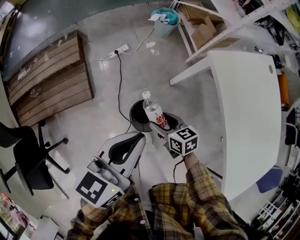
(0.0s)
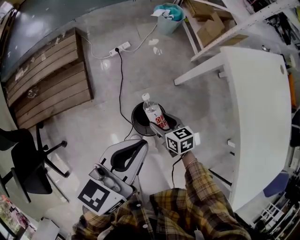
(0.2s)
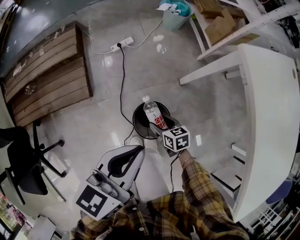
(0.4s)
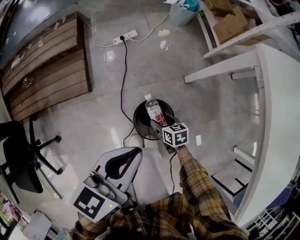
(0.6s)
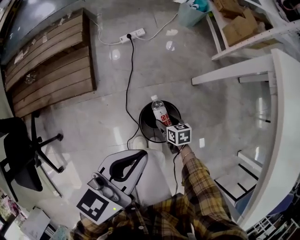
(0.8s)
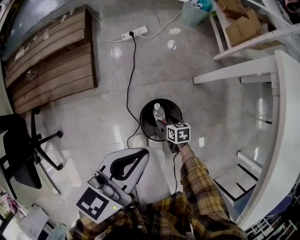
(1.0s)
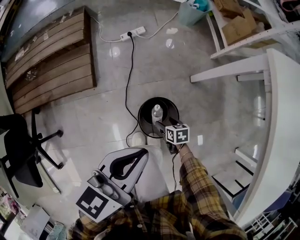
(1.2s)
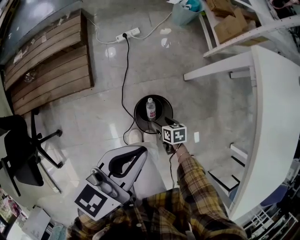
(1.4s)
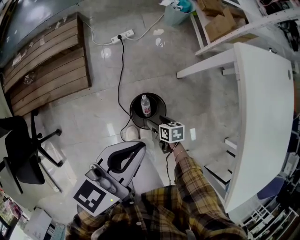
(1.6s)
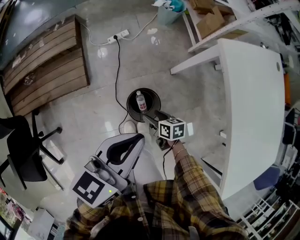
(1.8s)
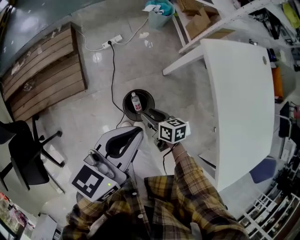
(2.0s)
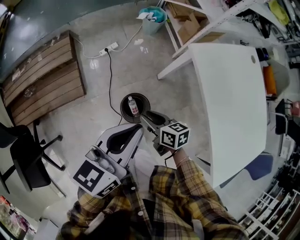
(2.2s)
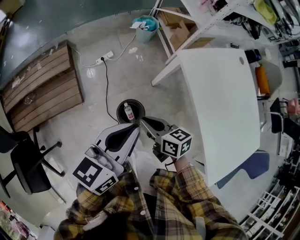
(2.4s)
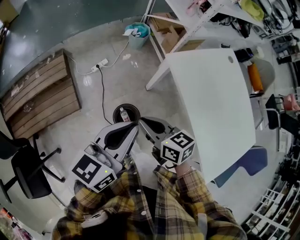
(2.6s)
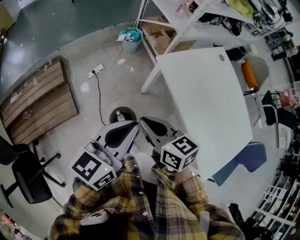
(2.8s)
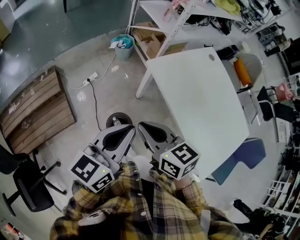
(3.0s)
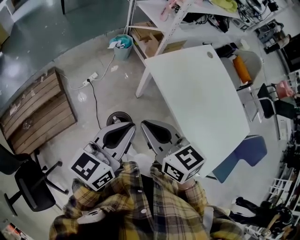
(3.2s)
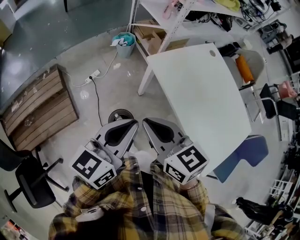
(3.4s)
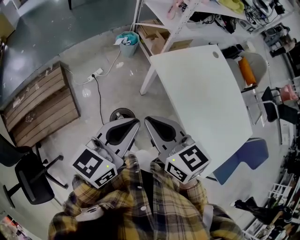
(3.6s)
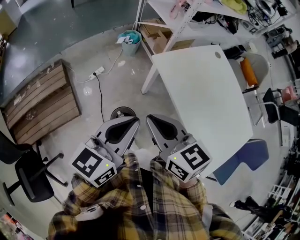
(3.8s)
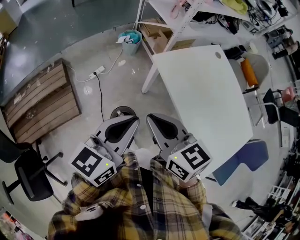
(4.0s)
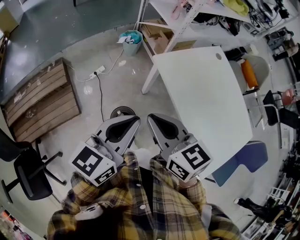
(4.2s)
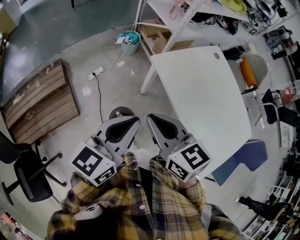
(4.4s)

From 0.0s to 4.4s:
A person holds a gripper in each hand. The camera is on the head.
From 0.0s to 1.4s: The left gripper heads downward, covering about 15 cm; the right gripper heads downward, covering some 30 cm, and rotates some 20 degrees.
From 1.4s to 3.0s: The left gripper goes some 30 cm upward, and swivels some 20 degrees. Meanwhile the right gripper goes roughly 60 cm upward, tips its fingers upward by about 40 degrees, and closes its fingers.
From 3.0s to 4.4s: The right gripper ends up some 5 cm from where it was.

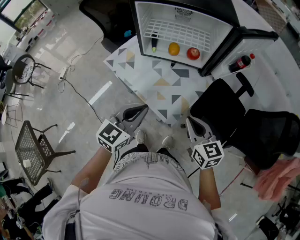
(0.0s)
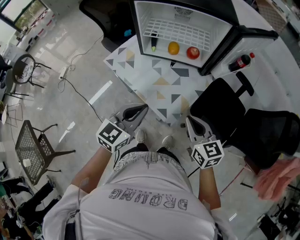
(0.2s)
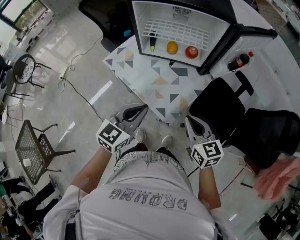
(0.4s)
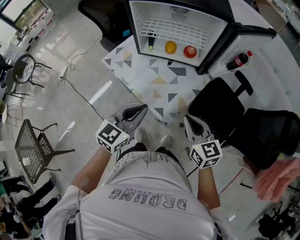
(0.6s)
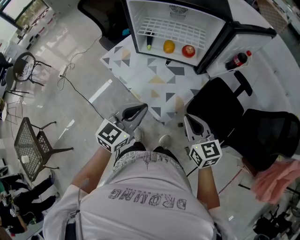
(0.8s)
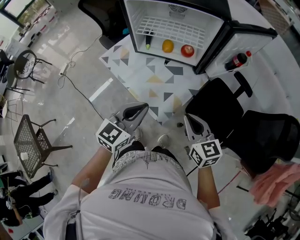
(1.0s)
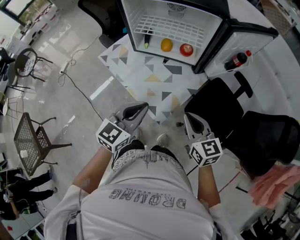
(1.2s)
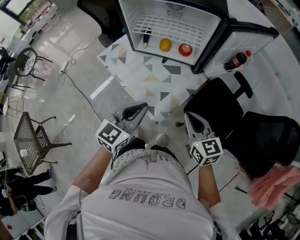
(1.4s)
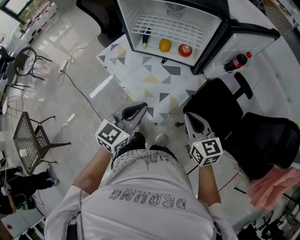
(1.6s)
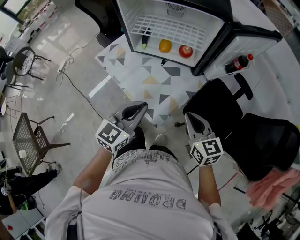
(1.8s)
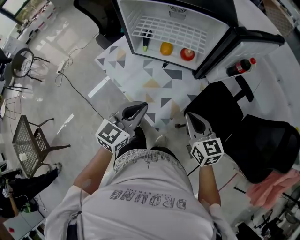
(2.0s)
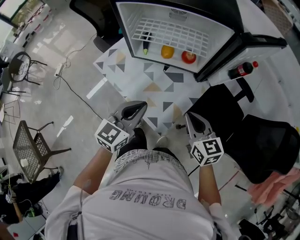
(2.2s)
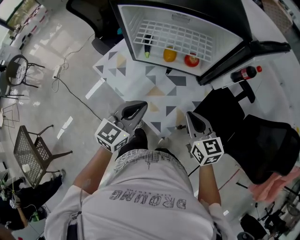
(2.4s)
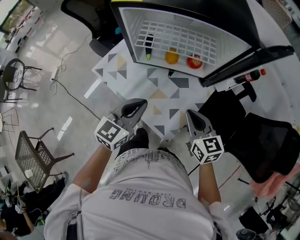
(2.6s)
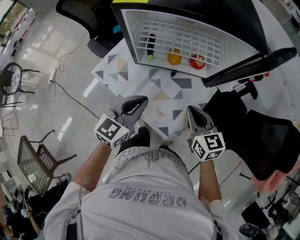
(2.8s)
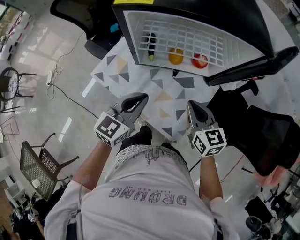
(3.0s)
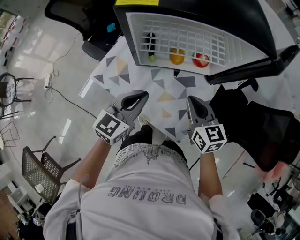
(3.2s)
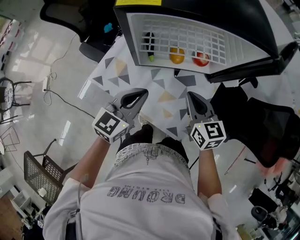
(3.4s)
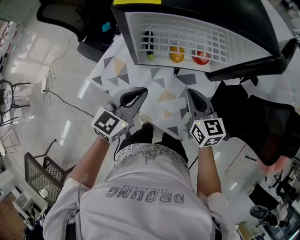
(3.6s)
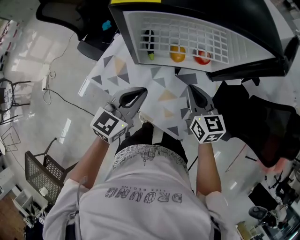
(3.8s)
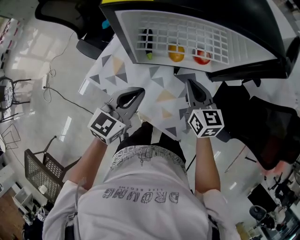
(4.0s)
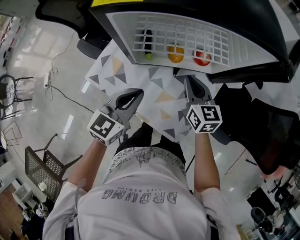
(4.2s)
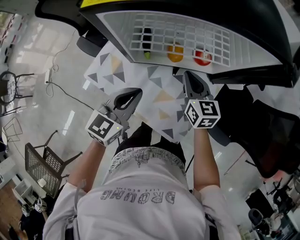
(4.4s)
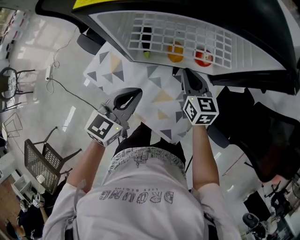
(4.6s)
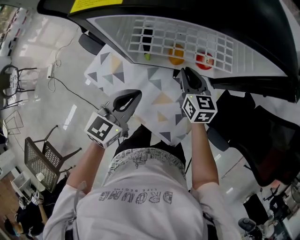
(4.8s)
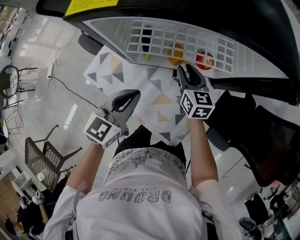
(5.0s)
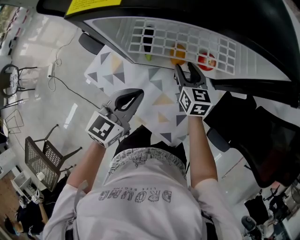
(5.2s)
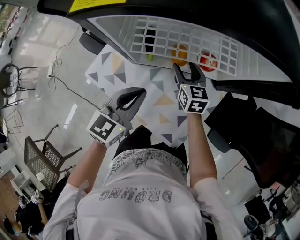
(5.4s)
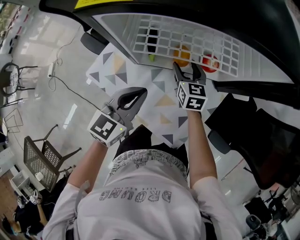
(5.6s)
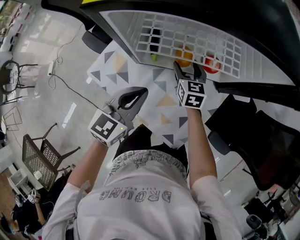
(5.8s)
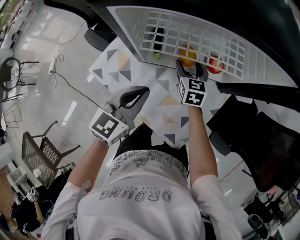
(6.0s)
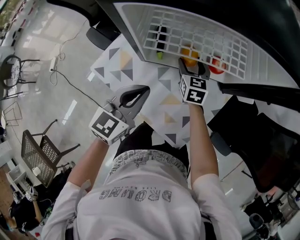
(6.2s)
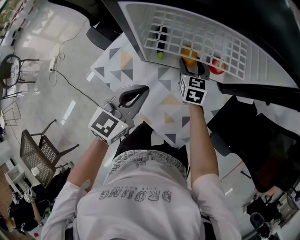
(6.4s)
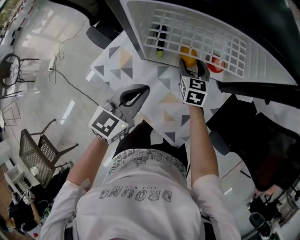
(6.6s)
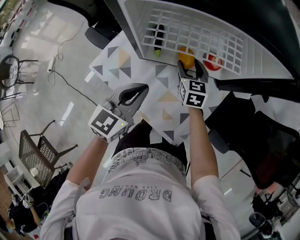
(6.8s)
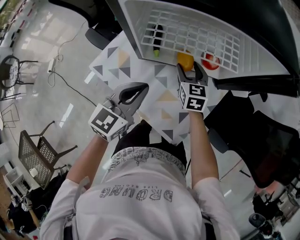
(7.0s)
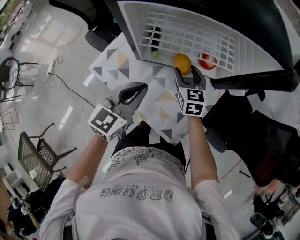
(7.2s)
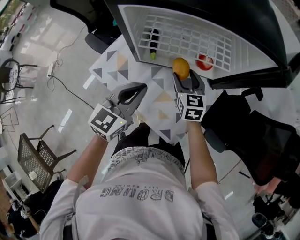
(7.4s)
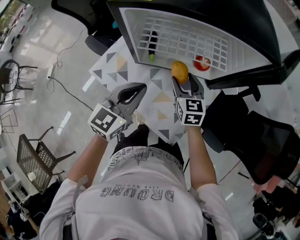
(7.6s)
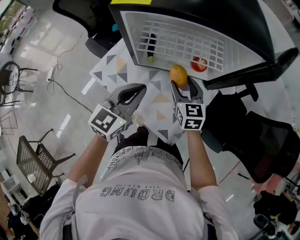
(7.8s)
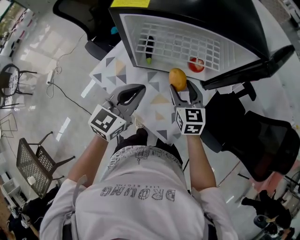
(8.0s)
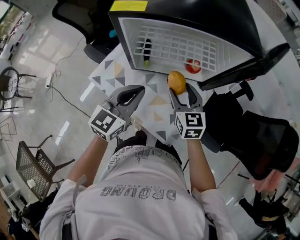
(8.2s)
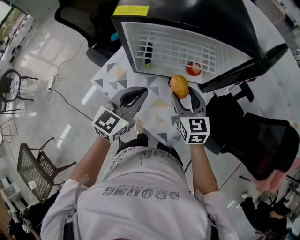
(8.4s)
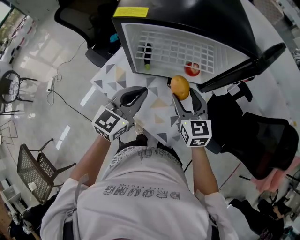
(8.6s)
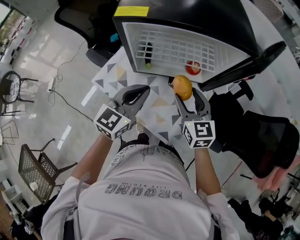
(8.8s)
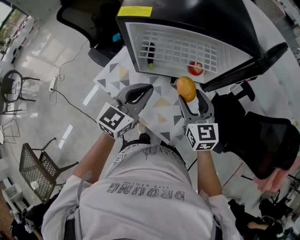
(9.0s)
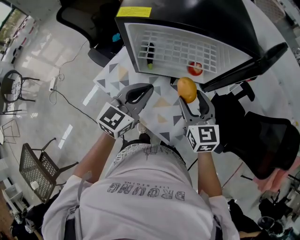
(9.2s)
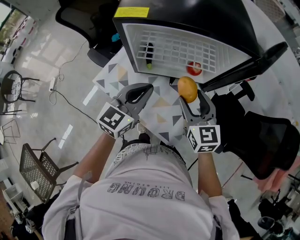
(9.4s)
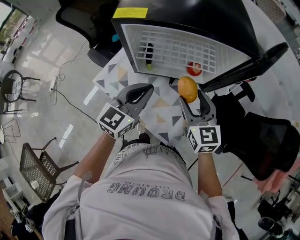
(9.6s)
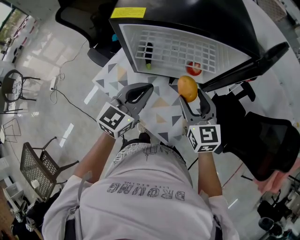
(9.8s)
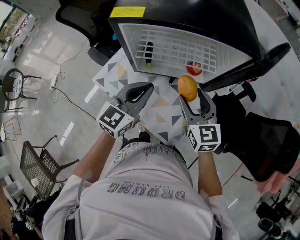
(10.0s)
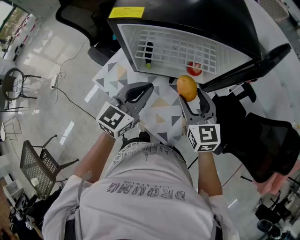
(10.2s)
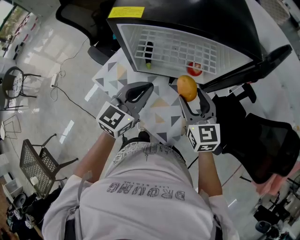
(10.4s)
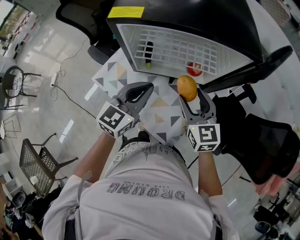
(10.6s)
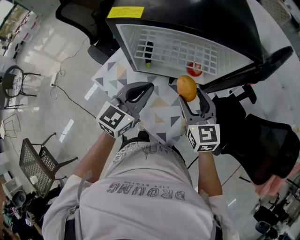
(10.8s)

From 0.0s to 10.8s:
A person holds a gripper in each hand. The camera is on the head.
From 0.0s to 1.6s: Both grippers travel together to the right, about 10 cm.
From 1.6s to 3.0s: Both grippers travel together forward and to the left, approximately 20 cm.
From 3.0s to 4.6s: The right gripper travels forward and downward by some 15 cm. Meanwhile the left gripper shifts by some 5 cm.
From 4.6s to 6.2s: The right gripper travels downward and forward by roughly 10 cm, and opens.
From 6.2s to 7.8s: The right gripper travels backward and upward by some 15 cm. Meanwhile the left gripper is displaced upward by about 5 cm.
From 7.8s to 9.2s: The right gripper shifts roughly 10 cm upward and backward.
From 9.2s to 10.8s: The grippers make only small movements.

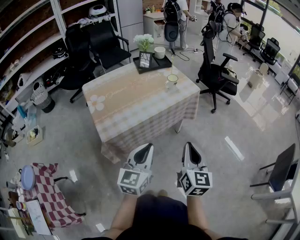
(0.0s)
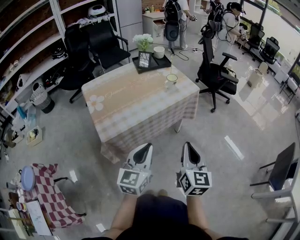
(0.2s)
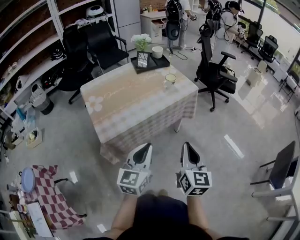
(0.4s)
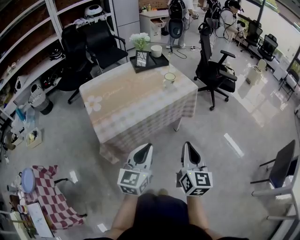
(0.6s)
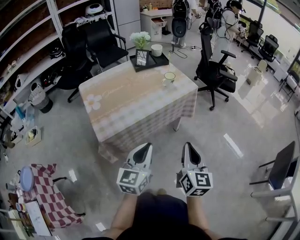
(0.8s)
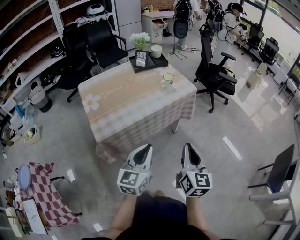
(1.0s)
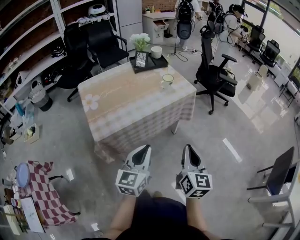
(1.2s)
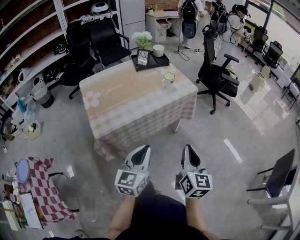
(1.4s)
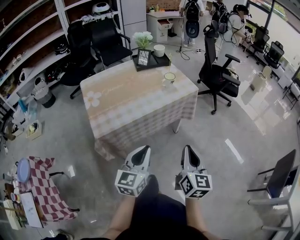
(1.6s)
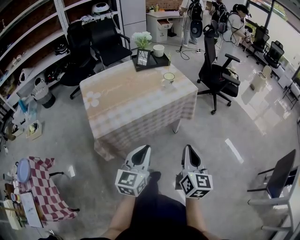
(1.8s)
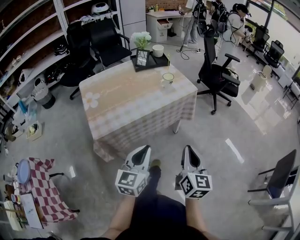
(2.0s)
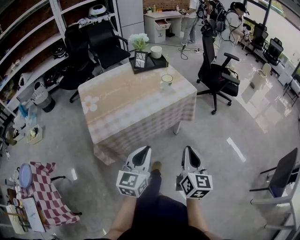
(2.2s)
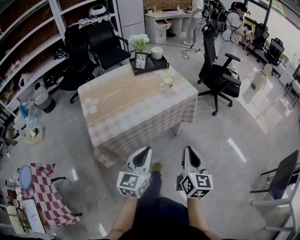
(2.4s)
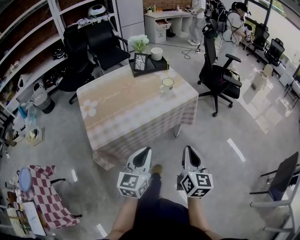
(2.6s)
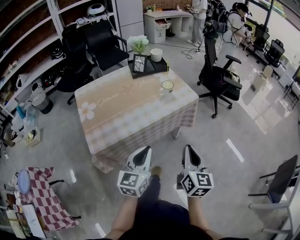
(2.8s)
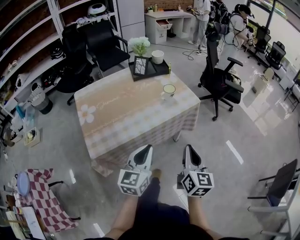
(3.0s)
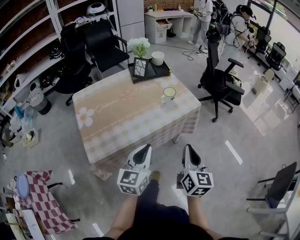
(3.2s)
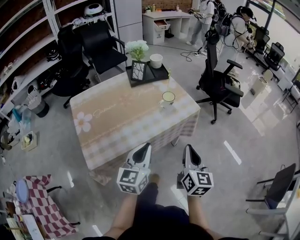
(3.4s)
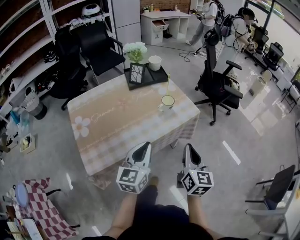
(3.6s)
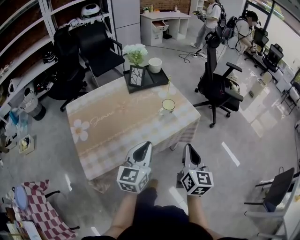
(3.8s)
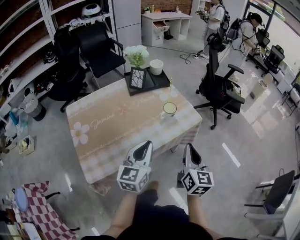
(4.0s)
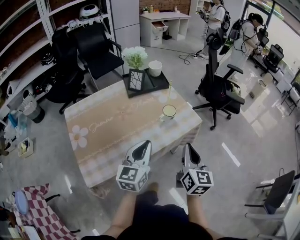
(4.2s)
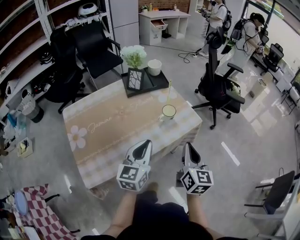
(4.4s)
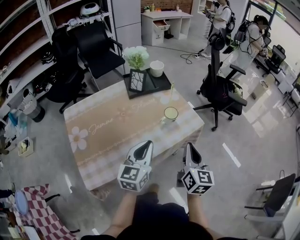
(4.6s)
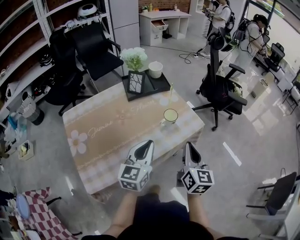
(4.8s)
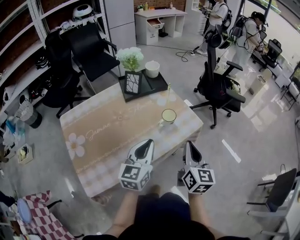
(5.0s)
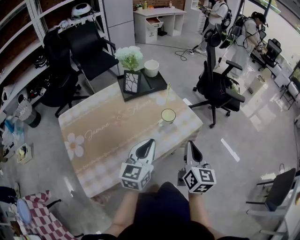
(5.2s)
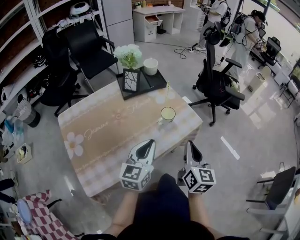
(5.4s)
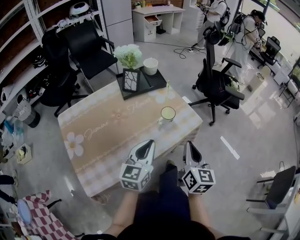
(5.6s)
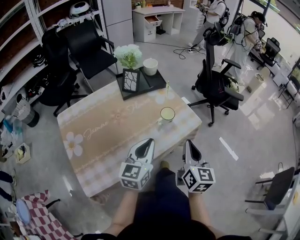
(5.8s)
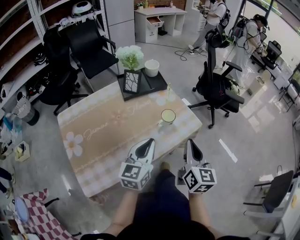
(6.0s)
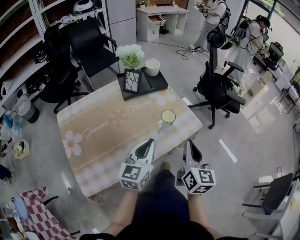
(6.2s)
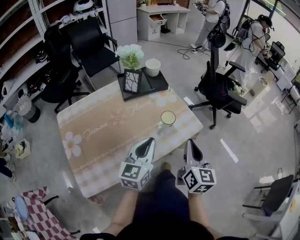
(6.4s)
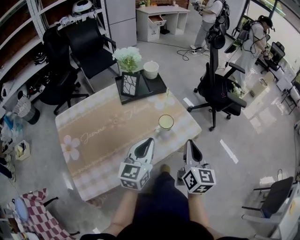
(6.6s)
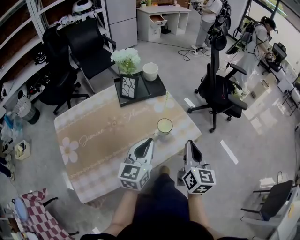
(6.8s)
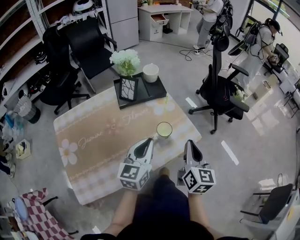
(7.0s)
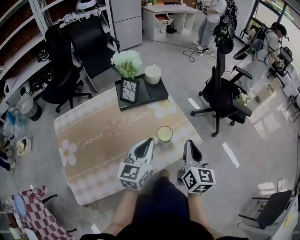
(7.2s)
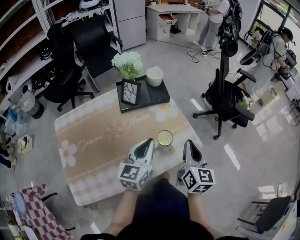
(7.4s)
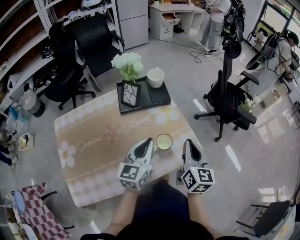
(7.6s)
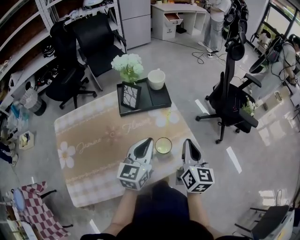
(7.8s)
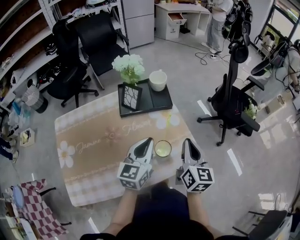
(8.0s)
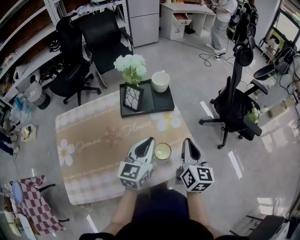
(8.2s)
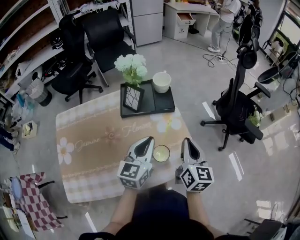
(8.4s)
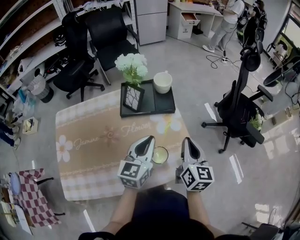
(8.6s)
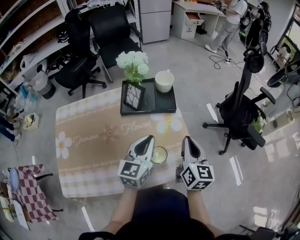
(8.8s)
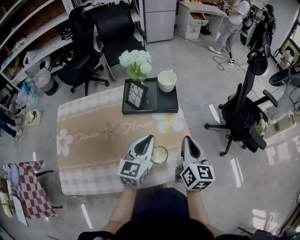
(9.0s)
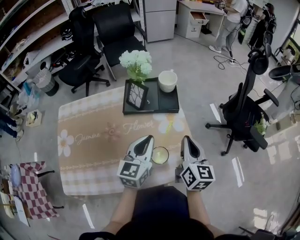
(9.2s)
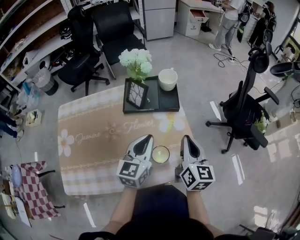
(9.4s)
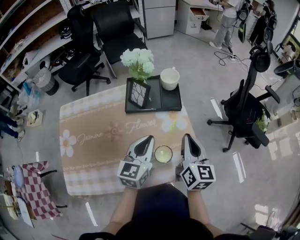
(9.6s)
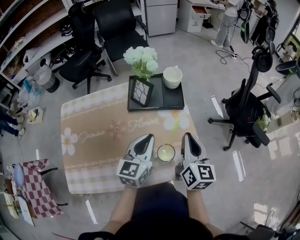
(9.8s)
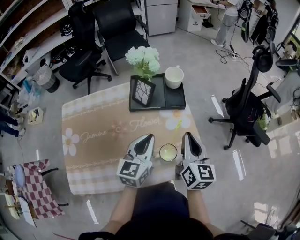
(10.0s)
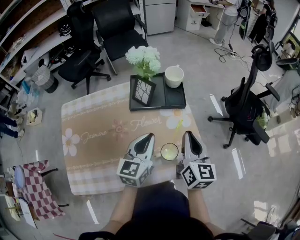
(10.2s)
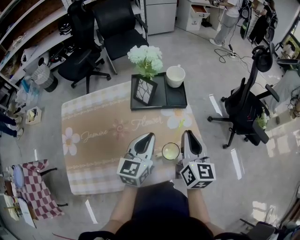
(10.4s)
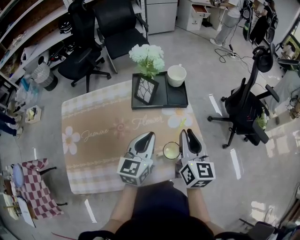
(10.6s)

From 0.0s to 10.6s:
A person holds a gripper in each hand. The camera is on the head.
From 0.0s to 1.6s: The right gripper shifts by approximately 5 cm.
From 1.6s to 3.0s: Both grippers move forward, some 15 cm.
From 3.0s to 4.6s: Both grippers move forward, approximately 20 cm.
From 4.6s to 6.0s: There are only small adjustments of the grippers.
From 6.0s to 7.6s: The two grippers go about 15 cm forward.
From 7.6s to 9.0s: The two grippers go approximately 10 cm forward.
From 9.0s to 10.6s: The right gripper heads to the left, covering some 5 cm, while the left gripper changes place by approximately 5 cm.
